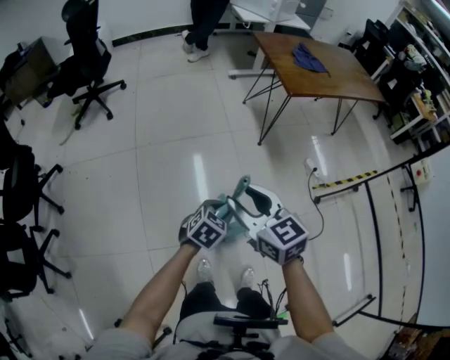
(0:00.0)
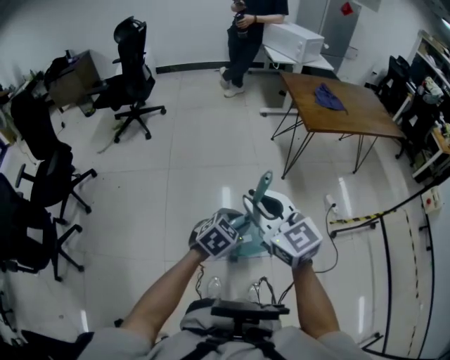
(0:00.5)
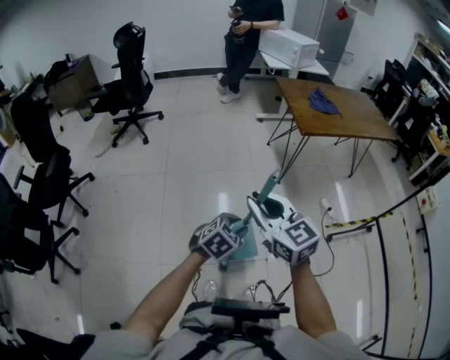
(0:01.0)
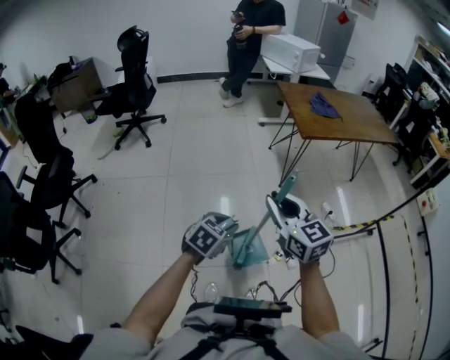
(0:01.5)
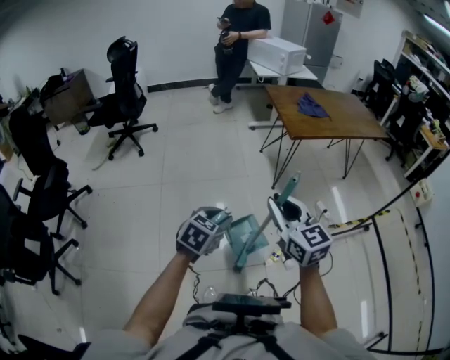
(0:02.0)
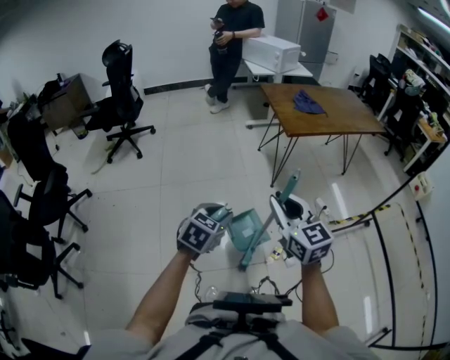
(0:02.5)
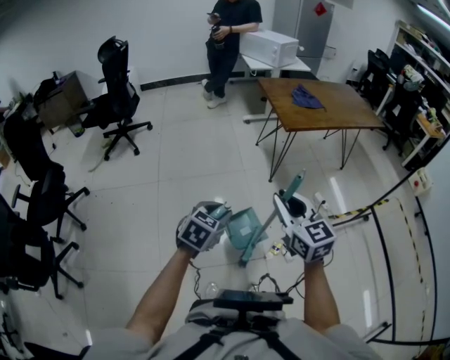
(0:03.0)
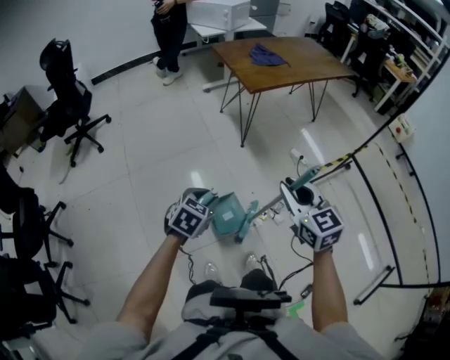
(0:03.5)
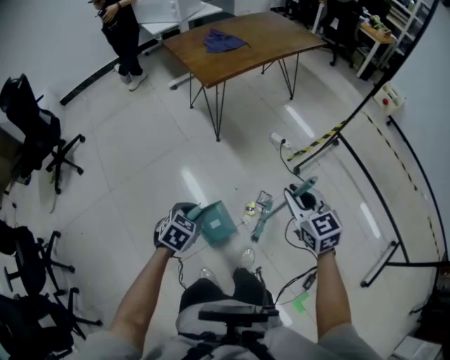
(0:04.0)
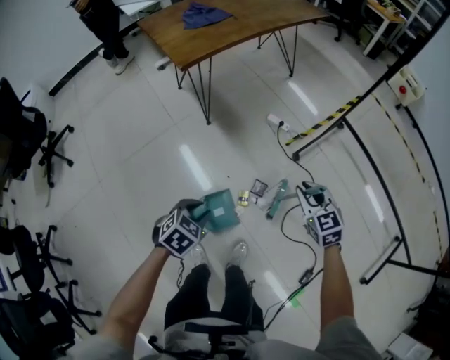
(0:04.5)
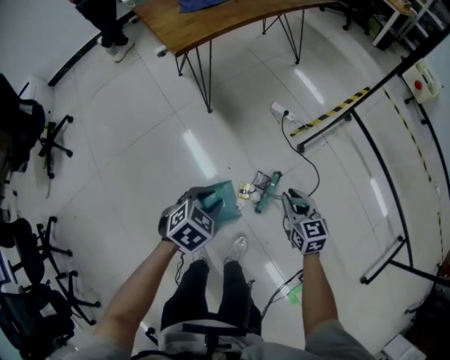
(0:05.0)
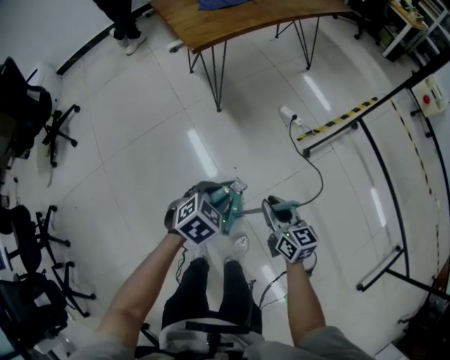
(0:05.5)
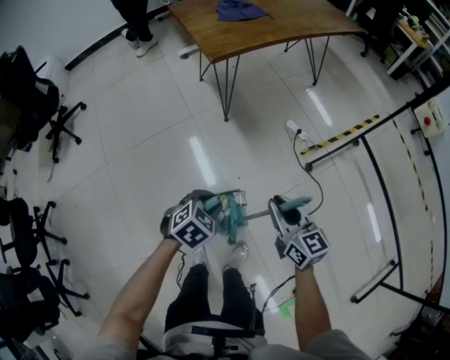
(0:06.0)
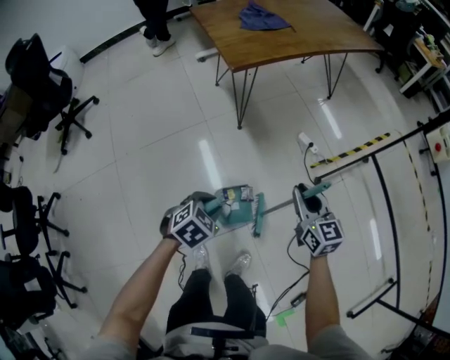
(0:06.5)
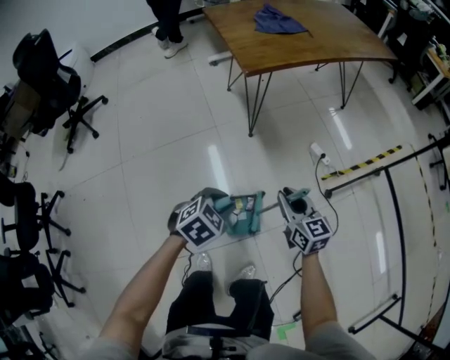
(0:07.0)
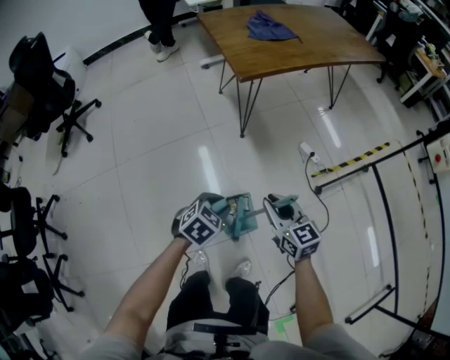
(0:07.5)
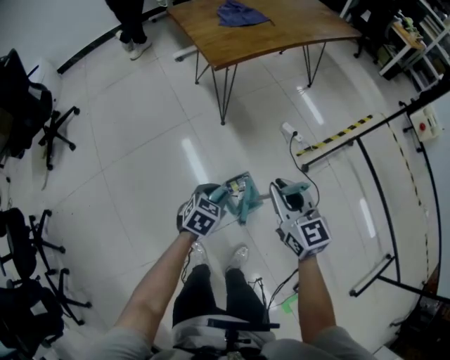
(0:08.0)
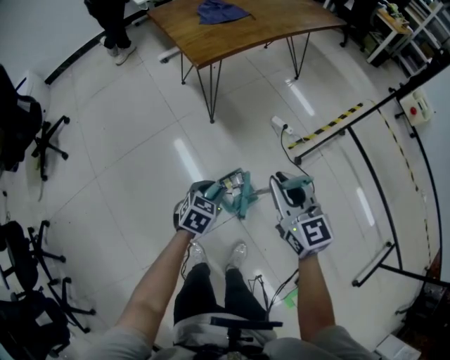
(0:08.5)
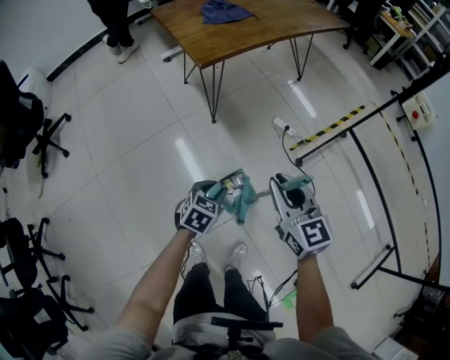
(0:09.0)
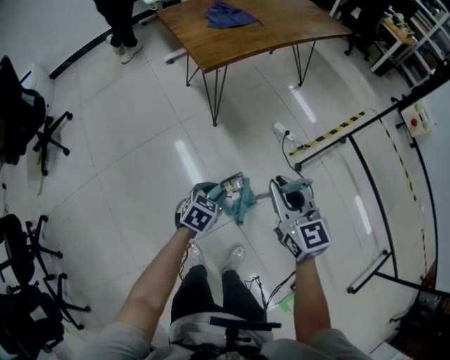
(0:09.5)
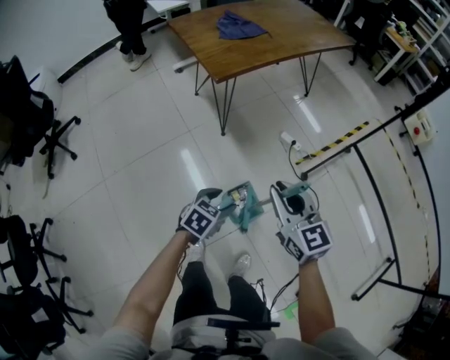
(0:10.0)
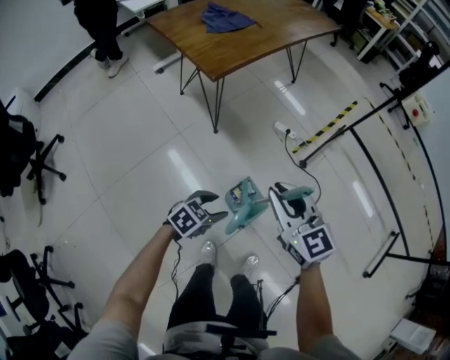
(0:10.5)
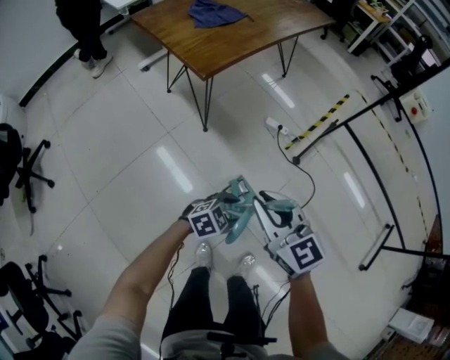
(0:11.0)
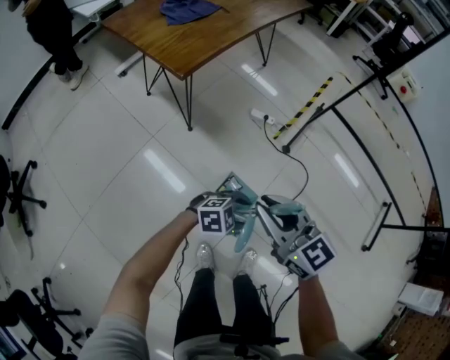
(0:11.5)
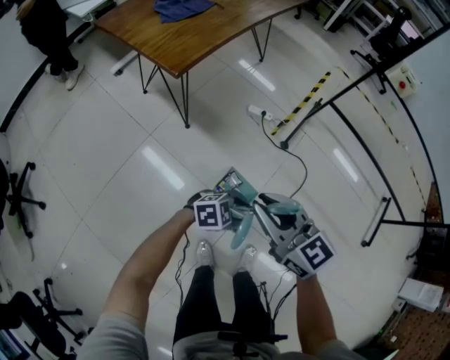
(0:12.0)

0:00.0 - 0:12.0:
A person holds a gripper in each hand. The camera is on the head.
0:00.0 - 0:02.0: The right gripper heads to the right and upward, covering about 15 cm, and closes. The left gripper heads upward, covering about 15 cm.
0:02.0 - 0:04.0: The left gripper goes approximately 20 cm downward and to the right, and rotates about 30 degrees. Meanwhile the right gripper goes approximately 30 cm to the right and downward, and rotates about 30 degrees.
0:04.0 - 0:06.0: The right gripper shifts roughly 10 cm downward, and swivels some 30 degrees. Meanwhile the left gripper goes some 15 cm to the right, forward and downward.
0:06.0 - 0:08.0: The right gripper heads upward and forward, covering roughly 10 cm. Meanwhile the left gripper heads forward, covering some 5 cm.
0:08.0 - 0:10.0: The left gripper opens up.
0:10.0 - 0:12.0: The left gripper shifts roughly 5 cm downward, and turns by some 70 degrees; the right gripper ends up approximately 10 cm from where it was.

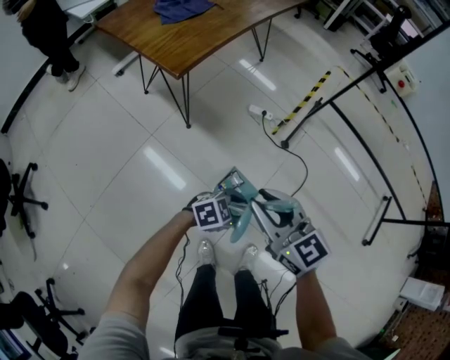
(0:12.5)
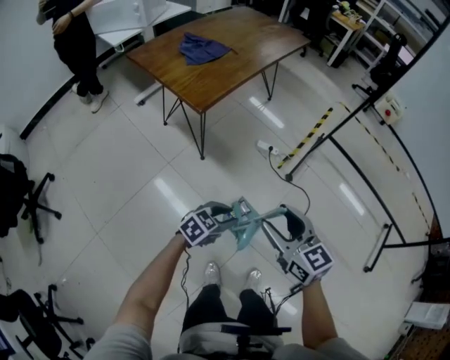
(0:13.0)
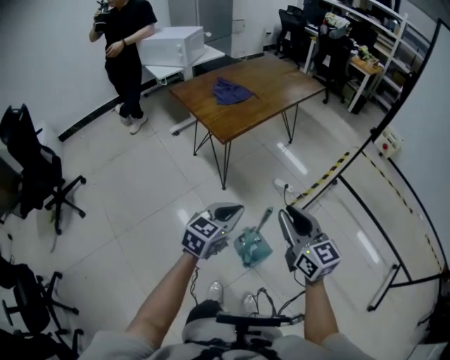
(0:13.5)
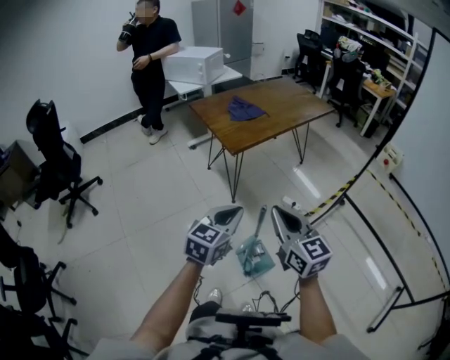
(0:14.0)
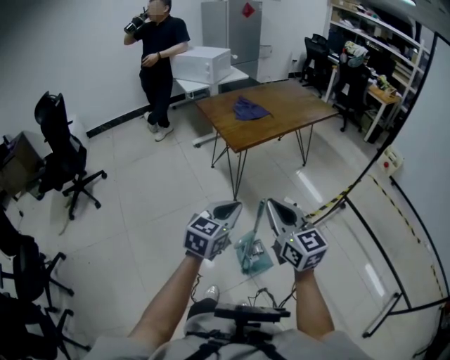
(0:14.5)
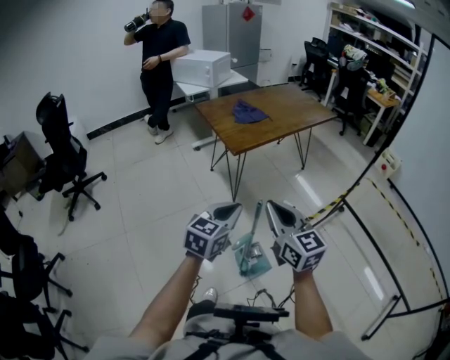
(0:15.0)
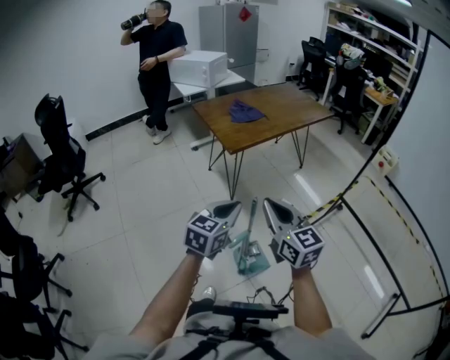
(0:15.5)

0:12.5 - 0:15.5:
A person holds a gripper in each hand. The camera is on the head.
0:12.5 - 0:14.0: The left gripper moves upward, some 35 cm, changes its angle by some 70 degrees, and closes; the right gripper heads upward, covering approximately 15 cm, and opens, then closes once more.
0:14.0 - 0:15.5: The grippers move only a little.

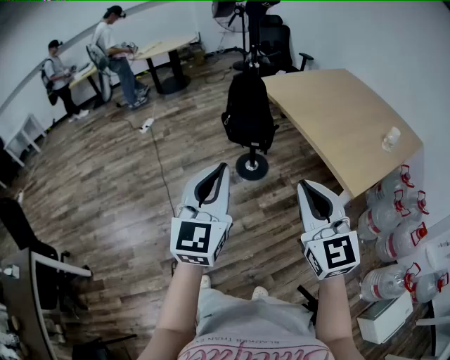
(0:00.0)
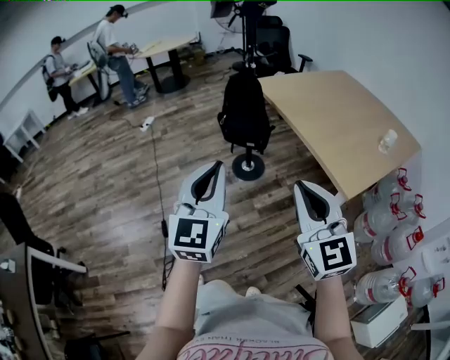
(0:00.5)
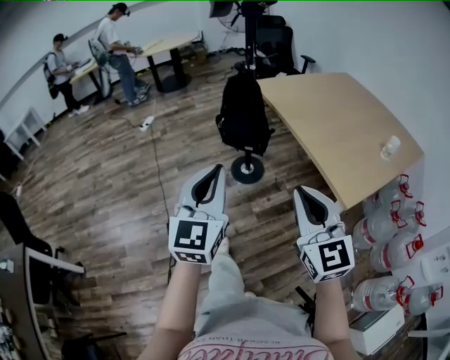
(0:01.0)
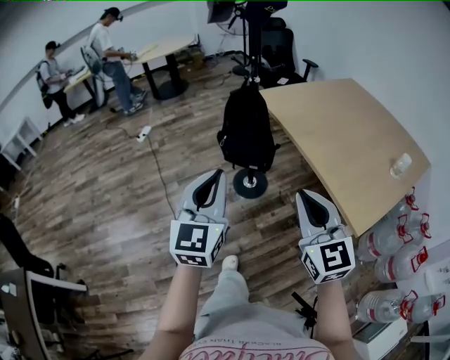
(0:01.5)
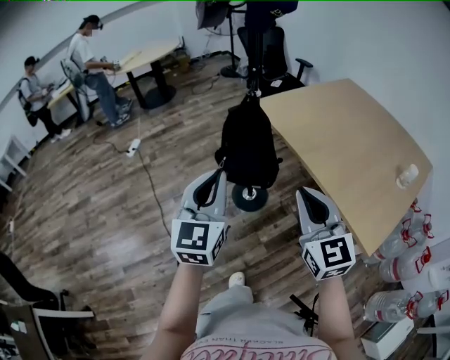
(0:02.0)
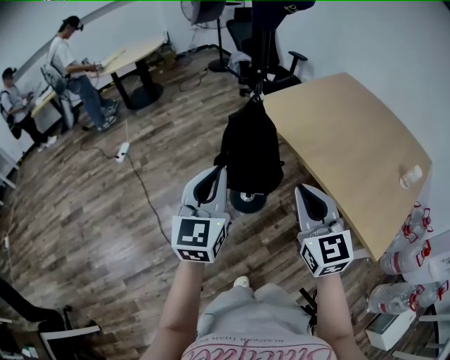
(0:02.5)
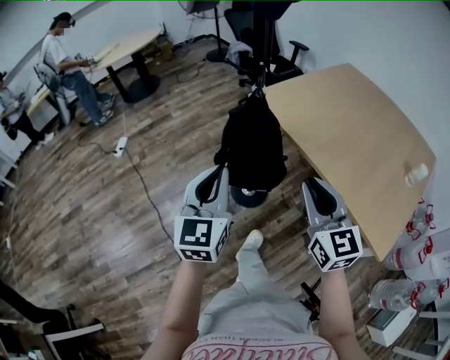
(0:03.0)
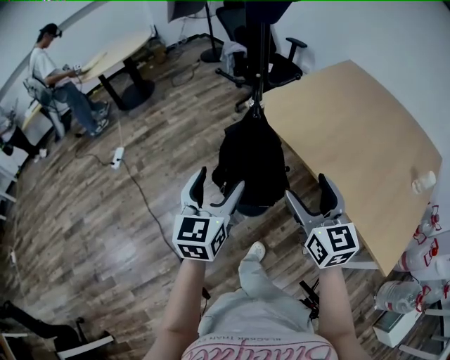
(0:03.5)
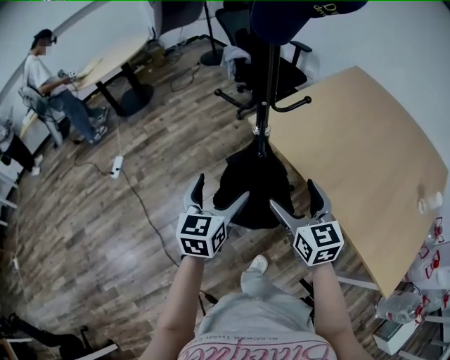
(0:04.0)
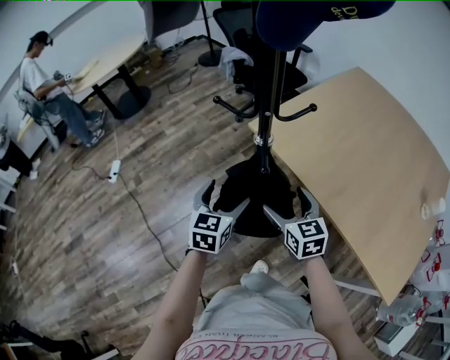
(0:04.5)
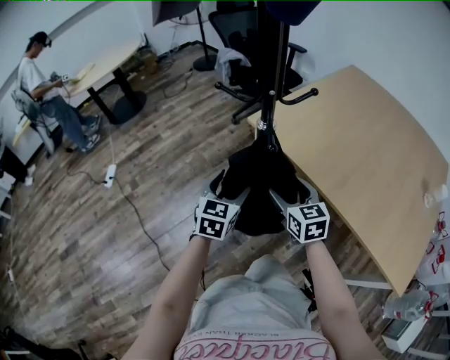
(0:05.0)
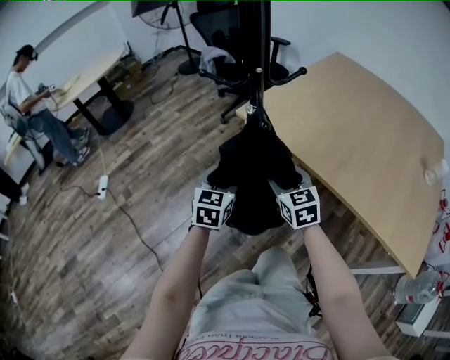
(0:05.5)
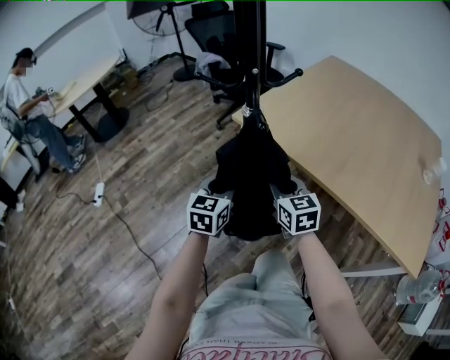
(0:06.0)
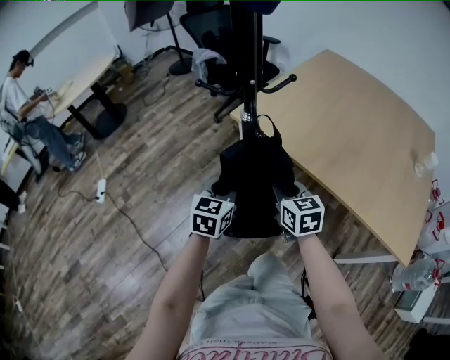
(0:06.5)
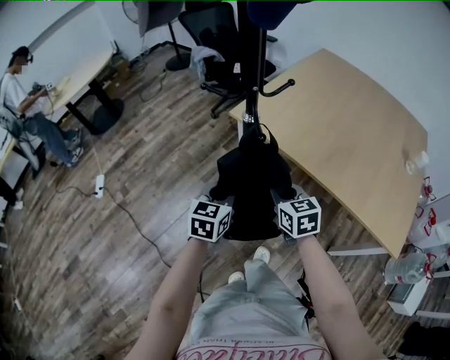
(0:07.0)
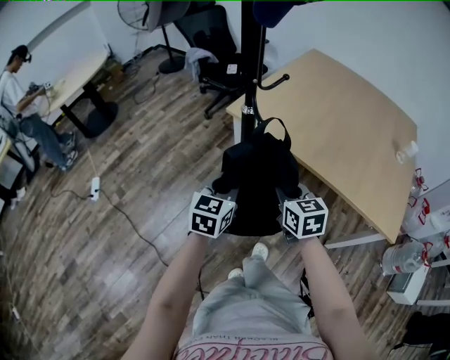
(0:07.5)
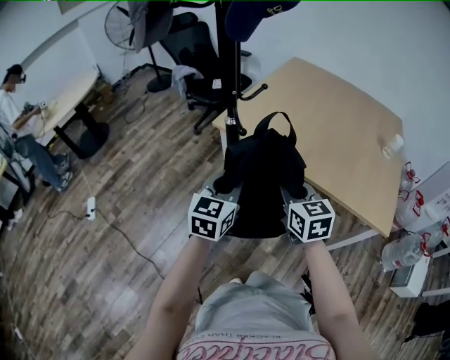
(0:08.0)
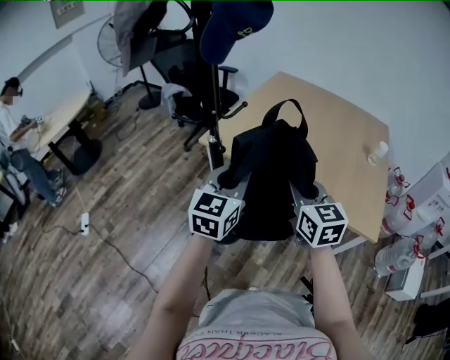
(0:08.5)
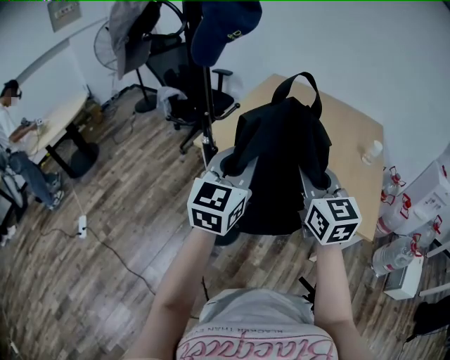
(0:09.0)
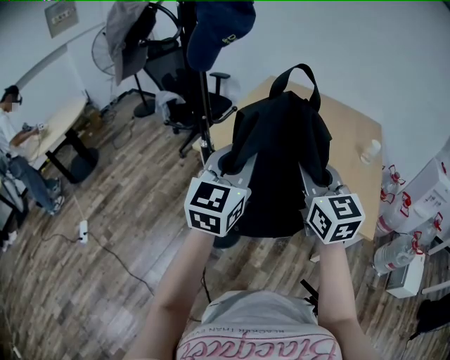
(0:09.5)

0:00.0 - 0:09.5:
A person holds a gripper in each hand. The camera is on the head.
0:00.0 - 0:02.0: The grippers both shift forward by some 30 cm.
0:02.0 - 0:04.0: The grippers both shift forward by approximately 30 cm. The right gripper opens; the left gripper swivels roughly 20 degrees, and opens.
0:04.0 - 0:05.5: The two grippers go roughly 15 cm downward and forward. The right gripper closes. The left gripper closes its fingers.
0:05.5 - 0:07.5: The two grippers go about 15 cm backward and upward. The right gripper closes.
0:07.5 - 0:09.5: Both grippers travel together upward and to the right, some 25 cm. The right gripper swivels roughly 30 degrees; the left gripper rotates about 30 degrees.

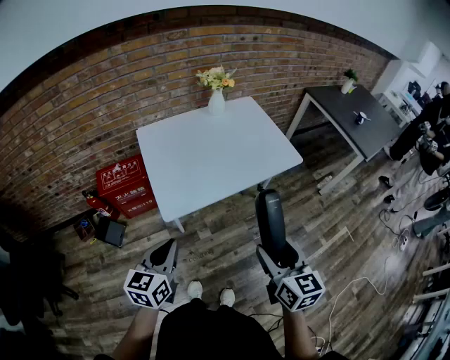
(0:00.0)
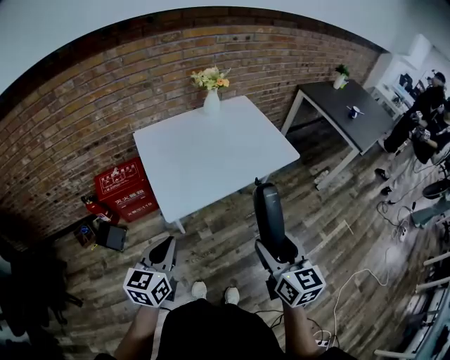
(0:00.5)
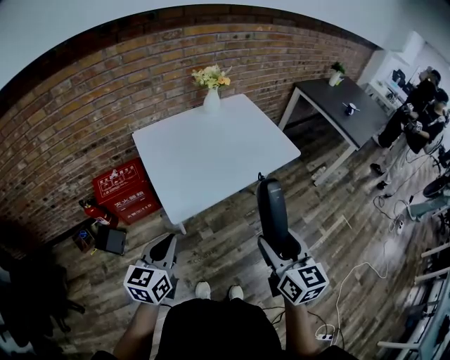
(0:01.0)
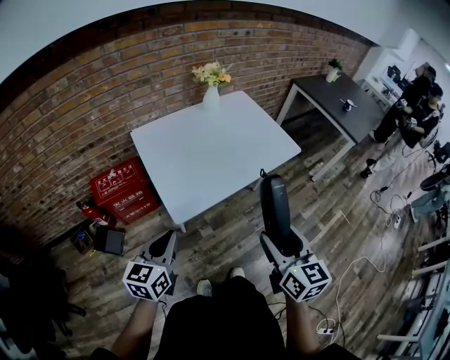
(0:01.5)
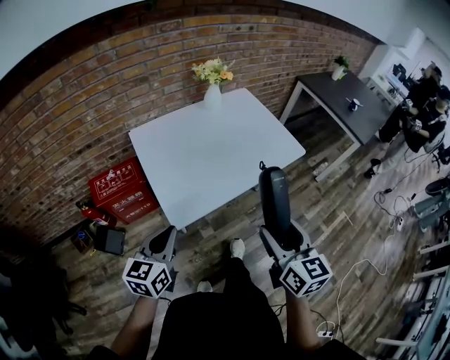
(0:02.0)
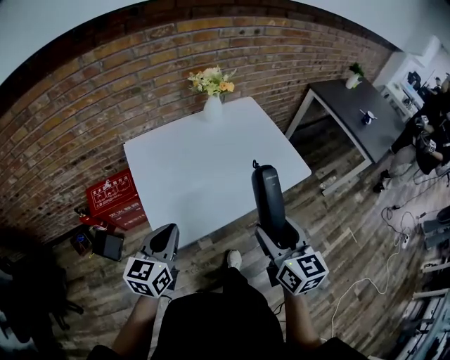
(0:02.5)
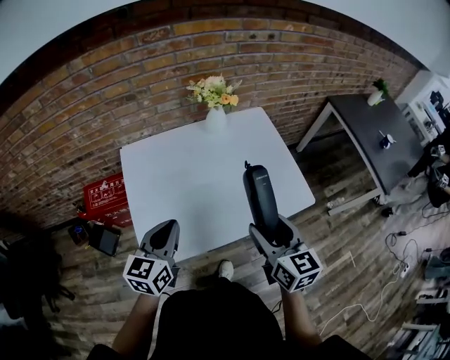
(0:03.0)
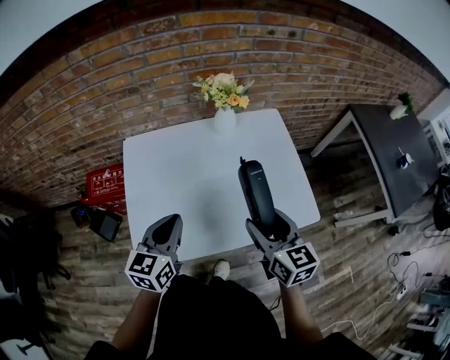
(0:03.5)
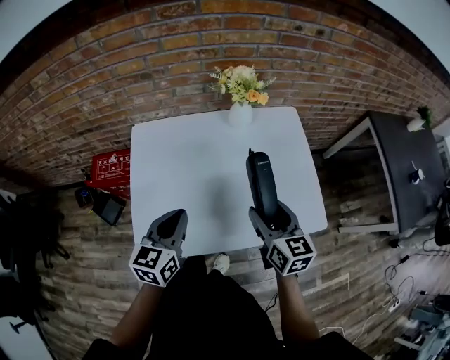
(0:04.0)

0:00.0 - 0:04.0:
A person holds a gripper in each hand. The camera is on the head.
0:00.0 - 0:02.0: Both grippers move to the left and forward, about 10 cm.
0:02.0 - 0:04.0: The right gripper goes about 35 cm forward, and changes its angle by some 30 degrees, while the left gripper shifts approximately 30 cm forward and to the right, and turns by roughly 20 degrees.
